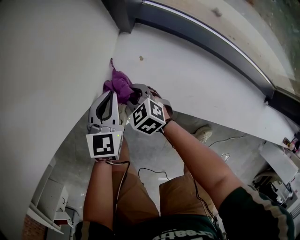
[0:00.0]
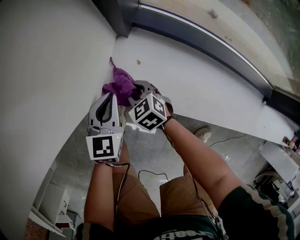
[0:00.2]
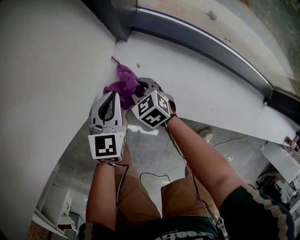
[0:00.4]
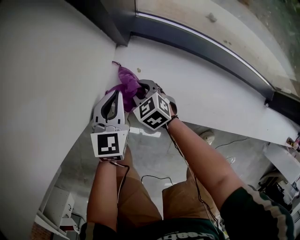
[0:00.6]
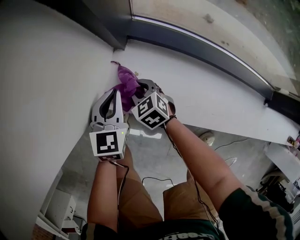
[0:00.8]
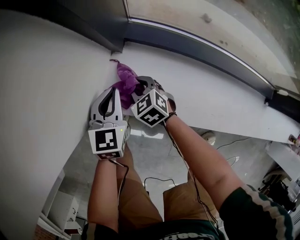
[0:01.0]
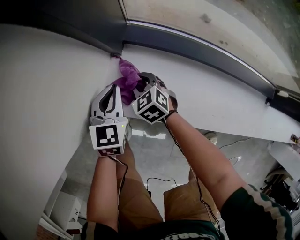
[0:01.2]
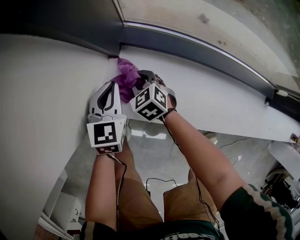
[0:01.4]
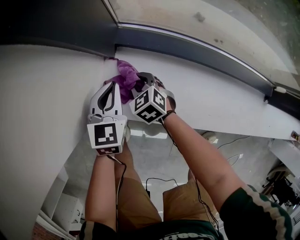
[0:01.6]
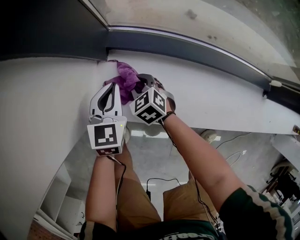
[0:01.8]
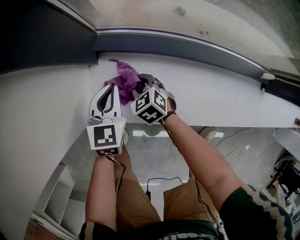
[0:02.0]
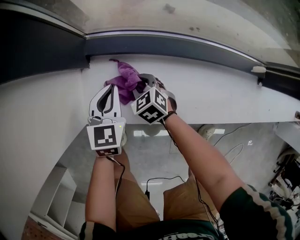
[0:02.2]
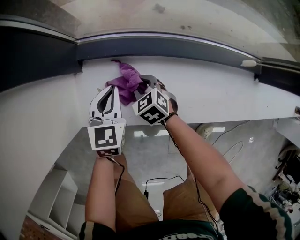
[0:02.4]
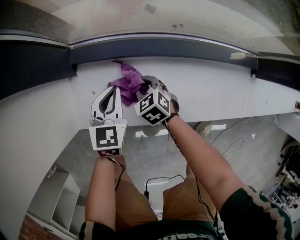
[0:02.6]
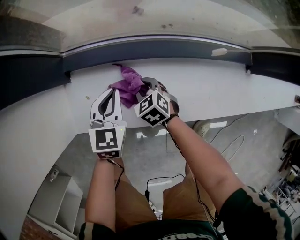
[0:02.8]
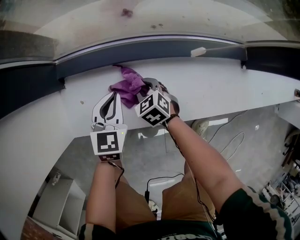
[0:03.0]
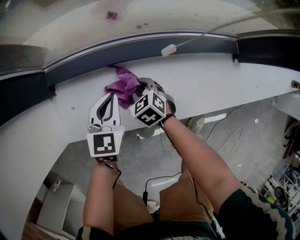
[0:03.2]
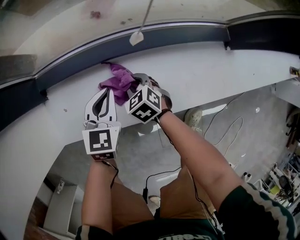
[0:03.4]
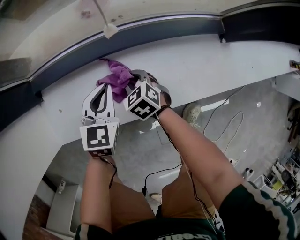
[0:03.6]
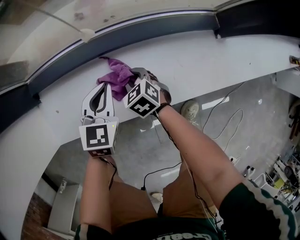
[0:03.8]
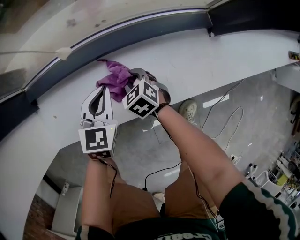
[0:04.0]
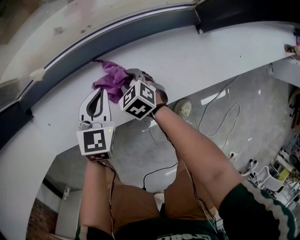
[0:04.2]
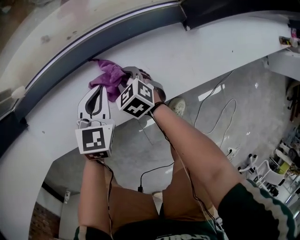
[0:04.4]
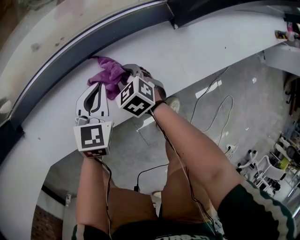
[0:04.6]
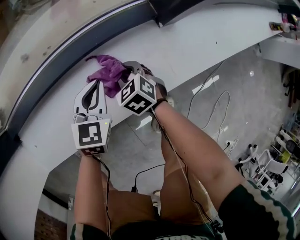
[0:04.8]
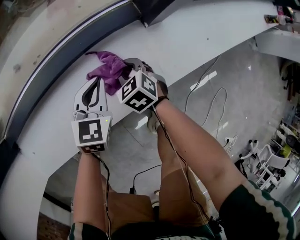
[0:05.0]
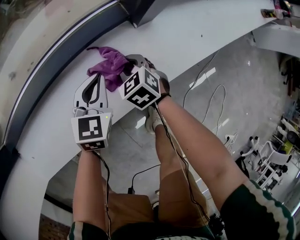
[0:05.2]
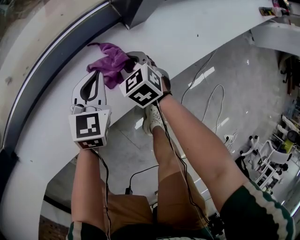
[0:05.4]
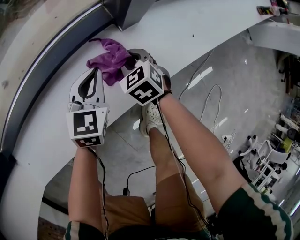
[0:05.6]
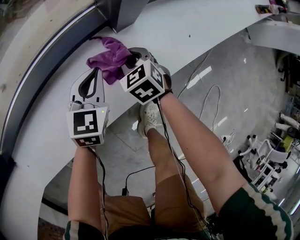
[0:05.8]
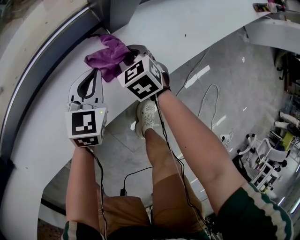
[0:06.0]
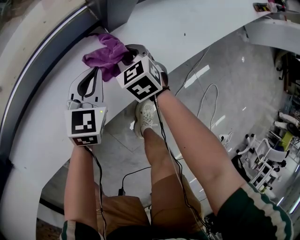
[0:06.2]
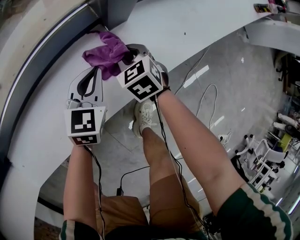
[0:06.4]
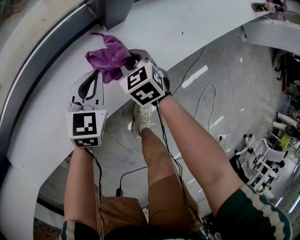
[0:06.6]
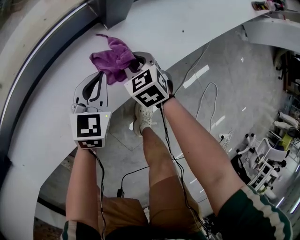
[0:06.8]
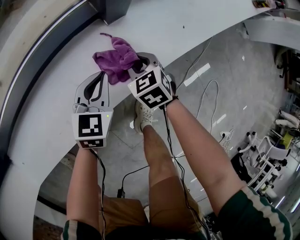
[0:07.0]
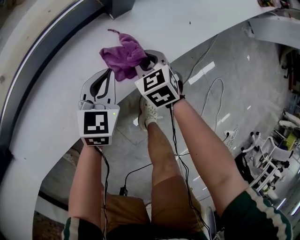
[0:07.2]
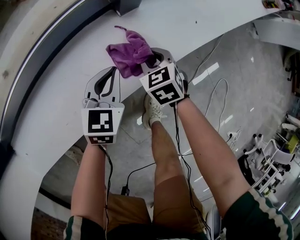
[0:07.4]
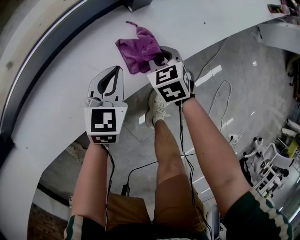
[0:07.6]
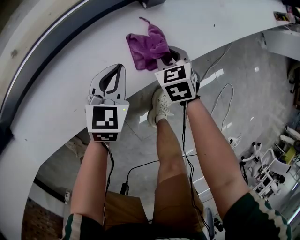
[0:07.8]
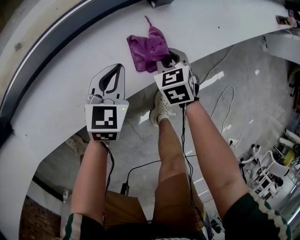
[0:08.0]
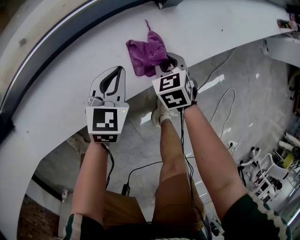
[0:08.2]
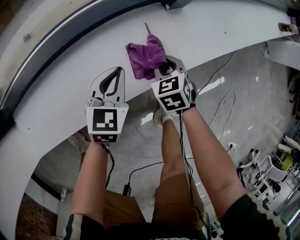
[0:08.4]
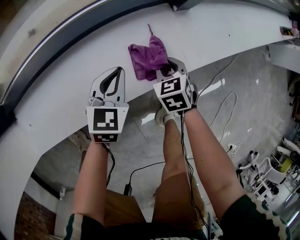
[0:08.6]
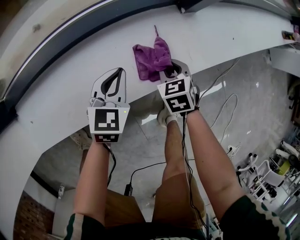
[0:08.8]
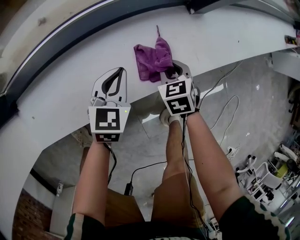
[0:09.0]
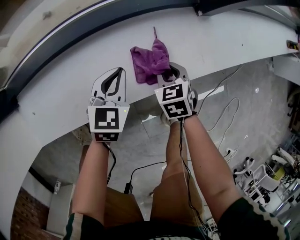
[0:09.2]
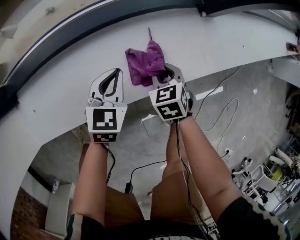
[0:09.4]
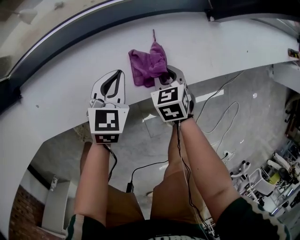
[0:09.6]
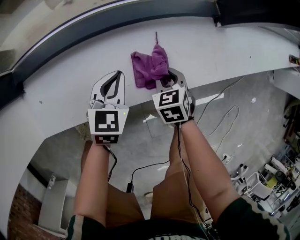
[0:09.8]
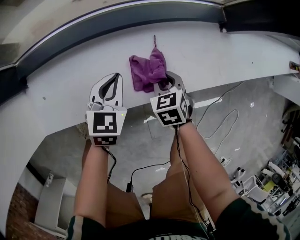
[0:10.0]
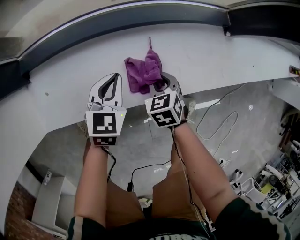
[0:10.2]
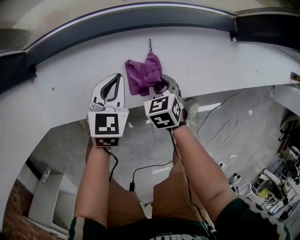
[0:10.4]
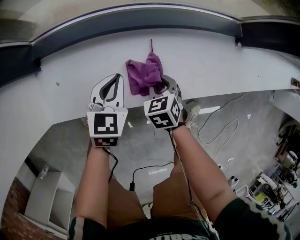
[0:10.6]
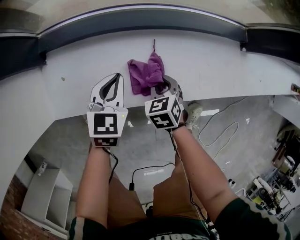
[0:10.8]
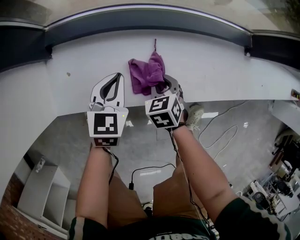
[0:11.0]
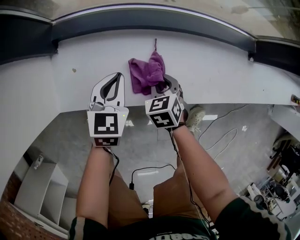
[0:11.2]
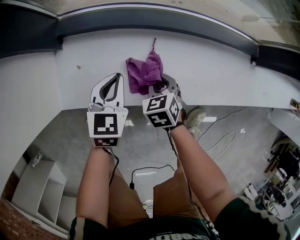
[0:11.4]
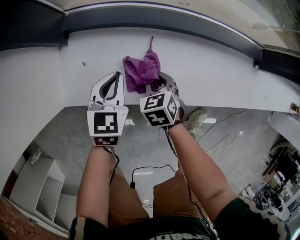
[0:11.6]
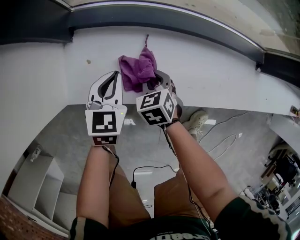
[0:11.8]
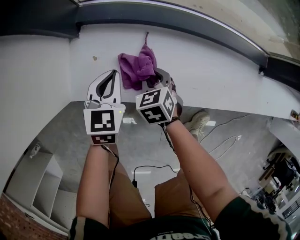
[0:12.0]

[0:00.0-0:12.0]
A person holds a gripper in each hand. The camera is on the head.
0:00.0 to 0:01.6: The grippers both shift to the right and forward by roughly 15 cm.
0:01.6 to 0:03.0: The grippers both shift to the right by some 20 cm.
0:03.0 to 0:04.4: The grippers both shift to the right by about 20 cm.
0:04.4 to 0:06.0: The grippers both shift to the right by about 30 cm. The right gripper rotates approximately 20 degrees.
0:06.0 to 0:07.6: Both grippers move backward, about 10 cm.
0:07.6 to 0:09.0: The right gripper shifts some 15 cm to the left and backward. The left gripper moves to the left, some 15 cm.
0:09.0 to 0:10.4: The two grippers go about 20 cm to the left.
0:10.4 to 0:12.0: Both grippers move to the left, approximately 20 cm.

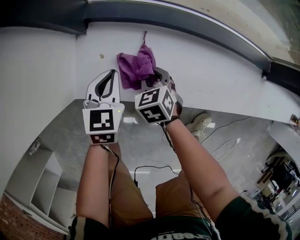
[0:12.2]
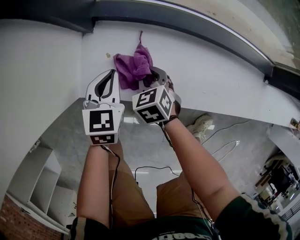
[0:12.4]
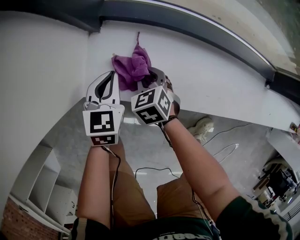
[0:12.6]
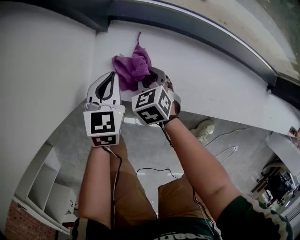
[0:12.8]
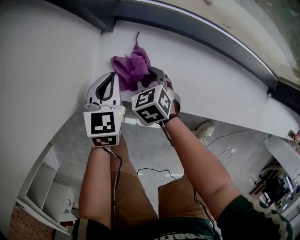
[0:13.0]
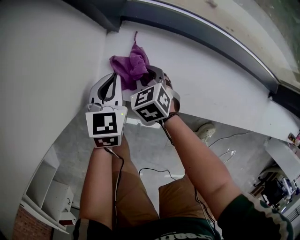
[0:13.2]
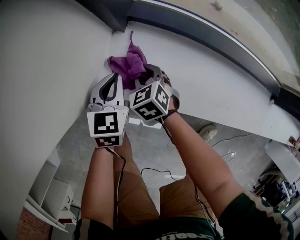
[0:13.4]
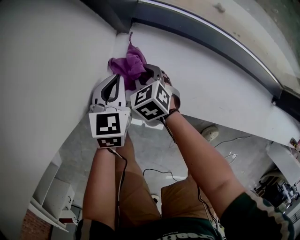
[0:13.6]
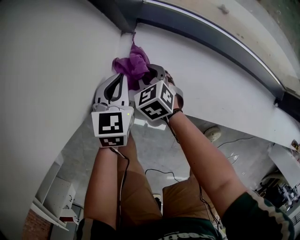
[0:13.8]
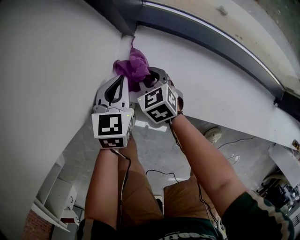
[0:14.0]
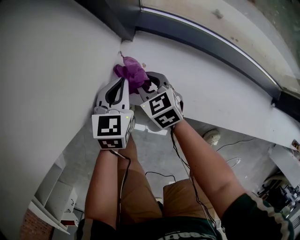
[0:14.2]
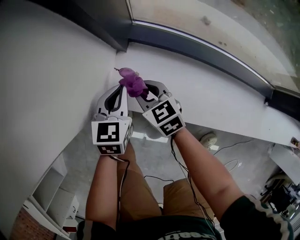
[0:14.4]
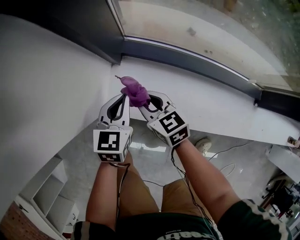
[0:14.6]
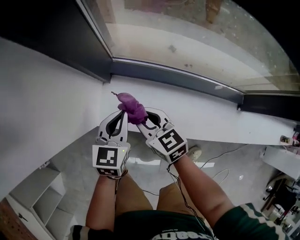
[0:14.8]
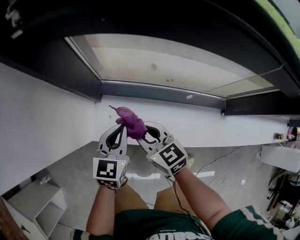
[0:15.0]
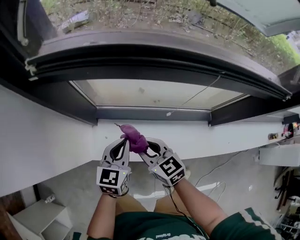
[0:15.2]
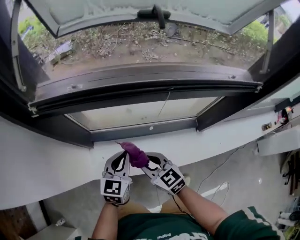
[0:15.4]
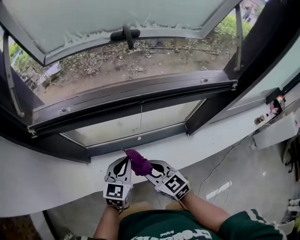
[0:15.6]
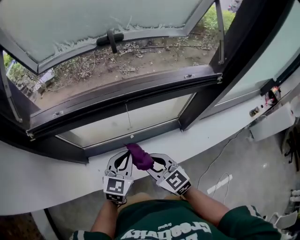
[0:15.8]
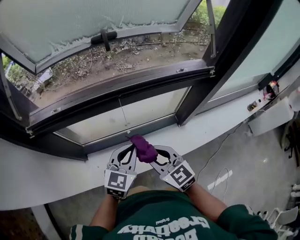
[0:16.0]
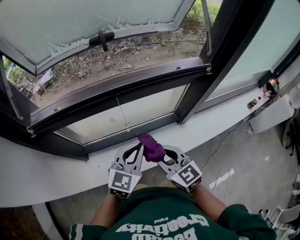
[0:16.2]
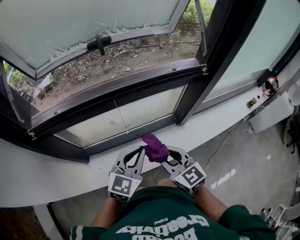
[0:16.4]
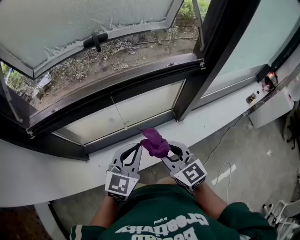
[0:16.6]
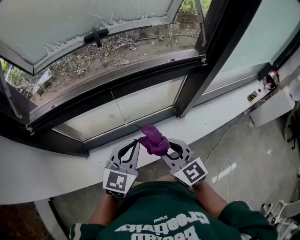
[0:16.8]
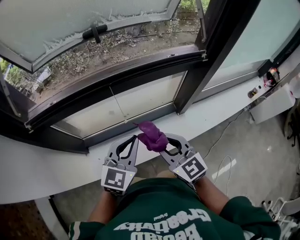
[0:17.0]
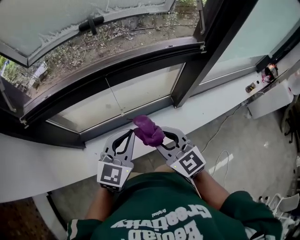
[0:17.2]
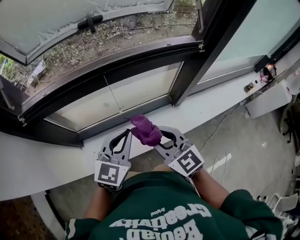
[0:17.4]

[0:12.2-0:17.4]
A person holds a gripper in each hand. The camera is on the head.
0:12.2 to 0:14.0: The left gripper shifts roughly 10 cm to the left. The right gripper is displaced to the left and forward by some 15 cm, and turns by roughly 20 degrees.
0:14.0 to 0:15.6: The grippers both shift upward by approximately 40 cm. The right gripper swivels approximately 30 degrees. The left gripper rotates some 40 degrees.
0:15.6 to 0:17.4: Both grippers move upward and to the right, about 15 cm.
